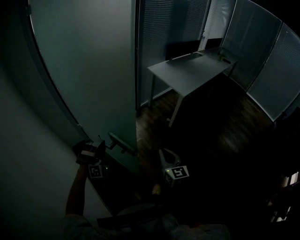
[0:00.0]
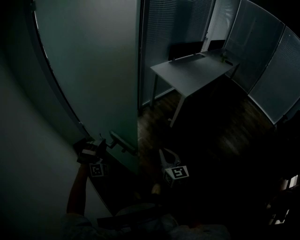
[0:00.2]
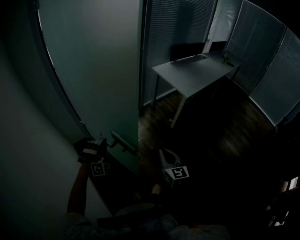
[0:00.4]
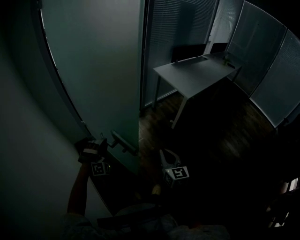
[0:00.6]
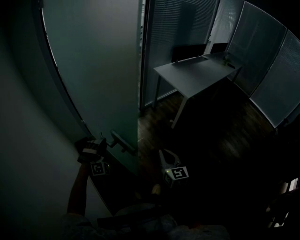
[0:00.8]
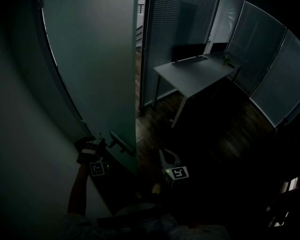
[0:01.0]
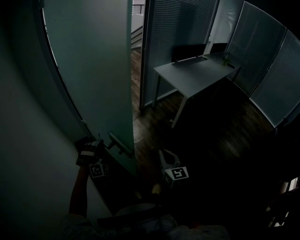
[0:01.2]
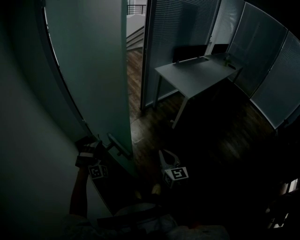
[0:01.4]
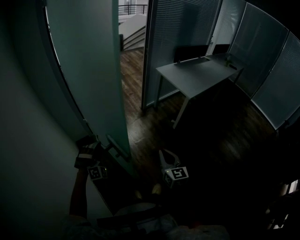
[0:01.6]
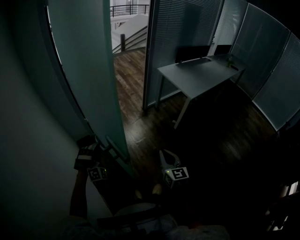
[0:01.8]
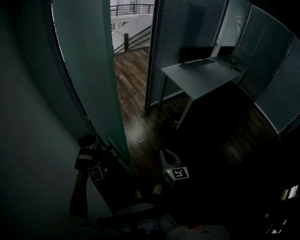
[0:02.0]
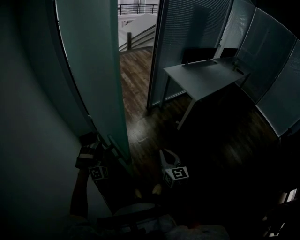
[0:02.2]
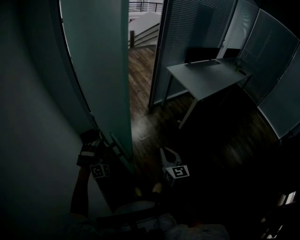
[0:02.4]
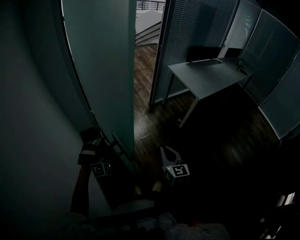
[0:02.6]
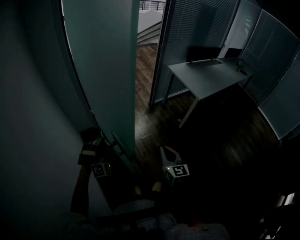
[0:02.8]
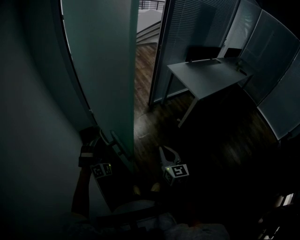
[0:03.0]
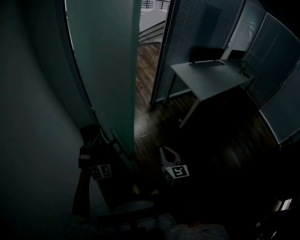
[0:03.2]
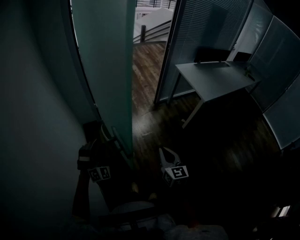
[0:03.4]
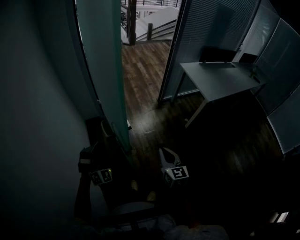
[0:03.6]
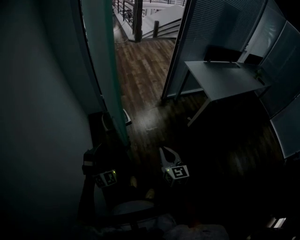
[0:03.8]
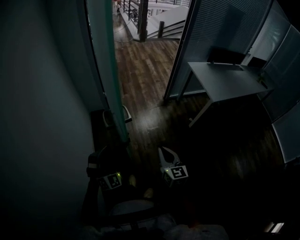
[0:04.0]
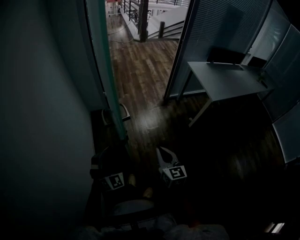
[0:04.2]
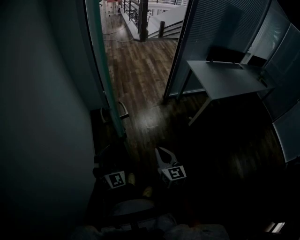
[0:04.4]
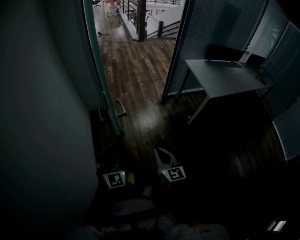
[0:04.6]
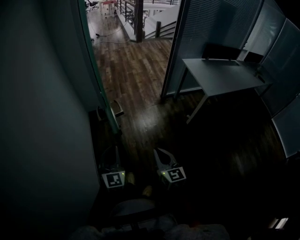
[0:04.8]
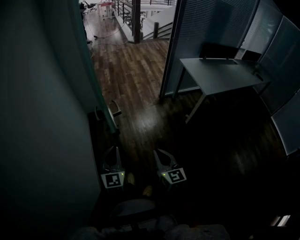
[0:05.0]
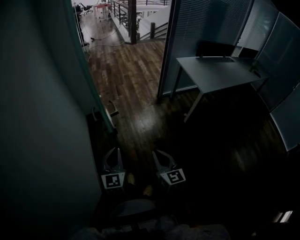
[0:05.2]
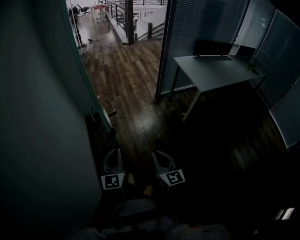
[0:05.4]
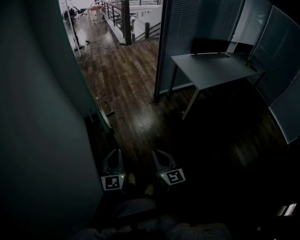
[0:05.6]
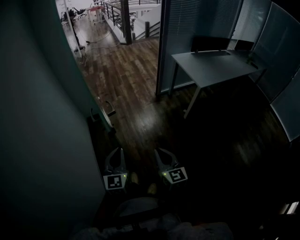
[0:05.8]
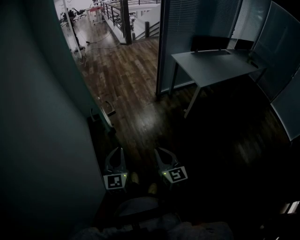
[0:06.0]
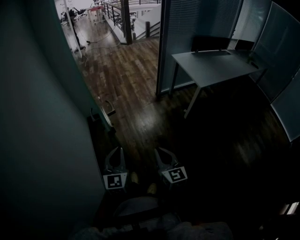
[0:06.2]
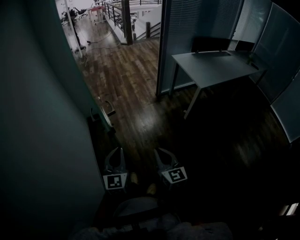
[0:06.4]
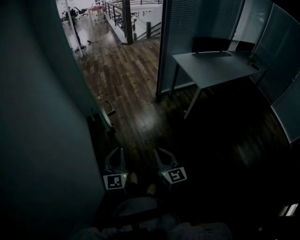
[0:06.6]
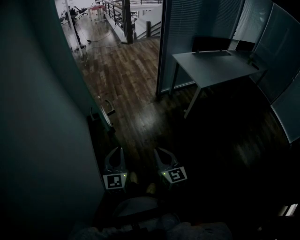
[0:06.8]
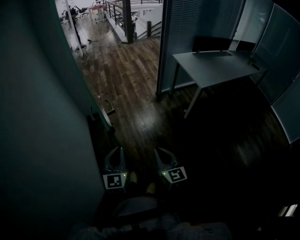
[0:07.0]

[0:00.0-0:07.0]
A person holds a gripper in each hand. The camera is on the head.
0:00.0 to 0:01.4: The left gripper is displaced to the left by about 5 cm.
0:01.4 to 0:02.8: The grippers make only small movements.
0:02.8 to 0:04.2: The left gripper is displaced backward by about 15 cm, turns by approximately 40 degrees, and opens and closes again. The right gripper goes some 5 cm backward.
0:04.2 to 0:05.6: The left gripper travels to the right and backward by about 10 cm, and twists some 50 degrees counterclockwise, seen from behind. The right gripper shifts roughly 10 cm backward.
0:05.6 to 0:07.0: Both grippers stay about where they are.

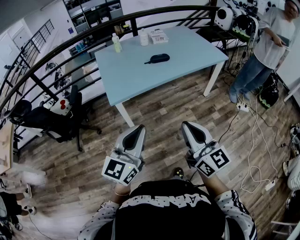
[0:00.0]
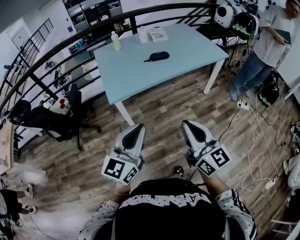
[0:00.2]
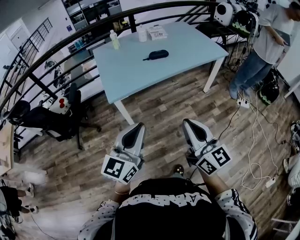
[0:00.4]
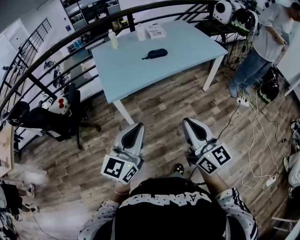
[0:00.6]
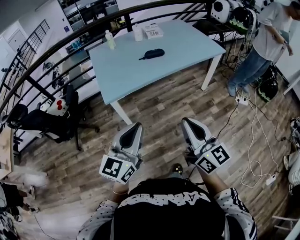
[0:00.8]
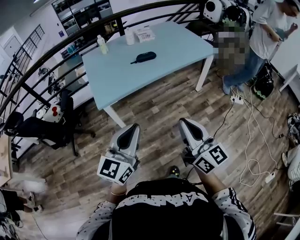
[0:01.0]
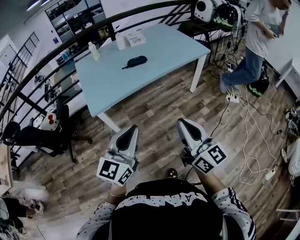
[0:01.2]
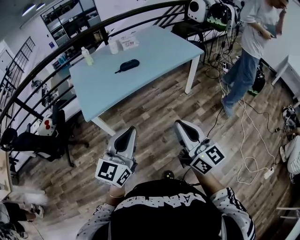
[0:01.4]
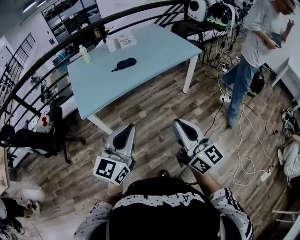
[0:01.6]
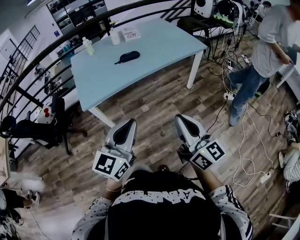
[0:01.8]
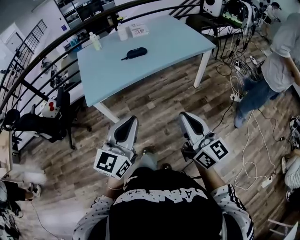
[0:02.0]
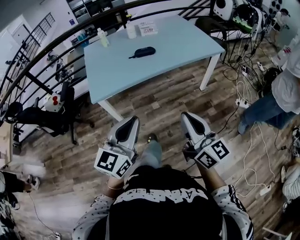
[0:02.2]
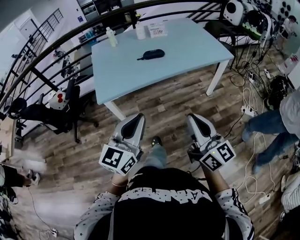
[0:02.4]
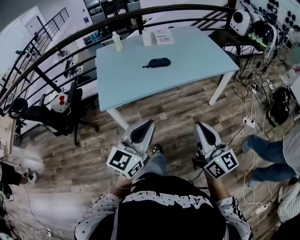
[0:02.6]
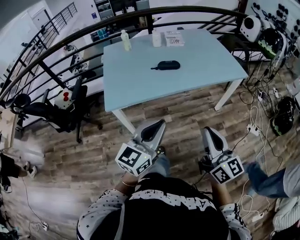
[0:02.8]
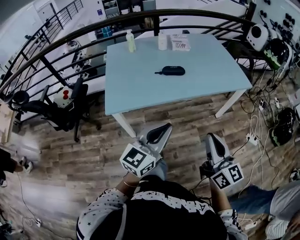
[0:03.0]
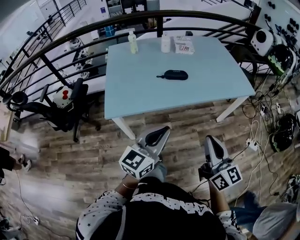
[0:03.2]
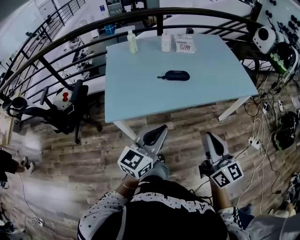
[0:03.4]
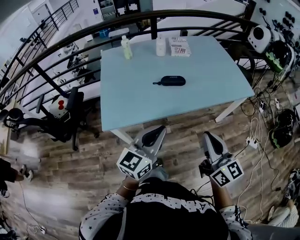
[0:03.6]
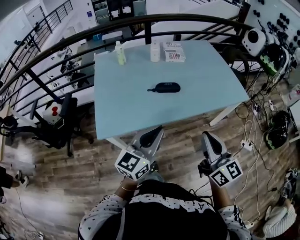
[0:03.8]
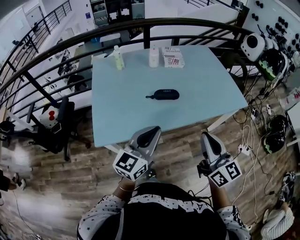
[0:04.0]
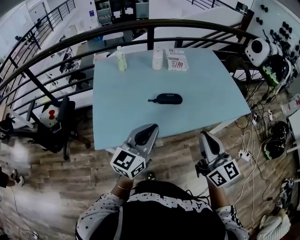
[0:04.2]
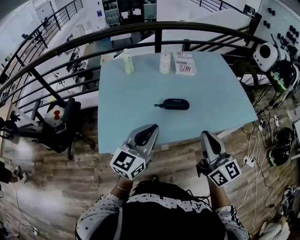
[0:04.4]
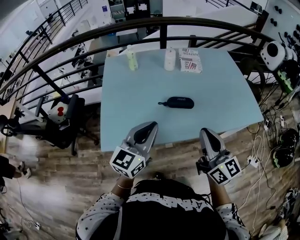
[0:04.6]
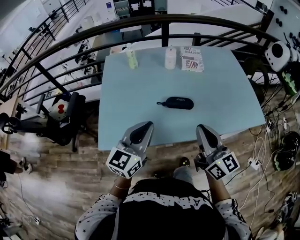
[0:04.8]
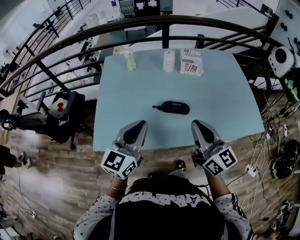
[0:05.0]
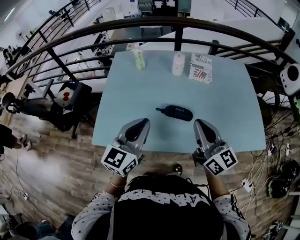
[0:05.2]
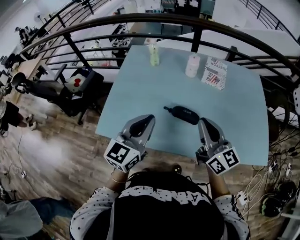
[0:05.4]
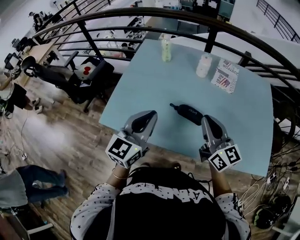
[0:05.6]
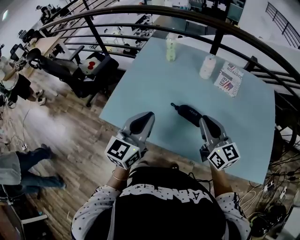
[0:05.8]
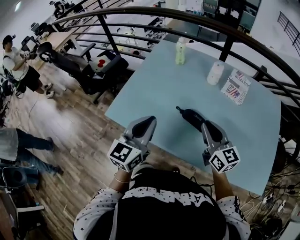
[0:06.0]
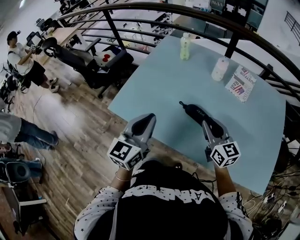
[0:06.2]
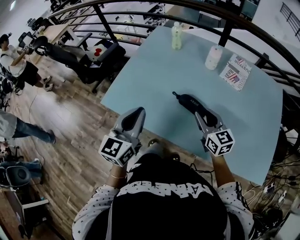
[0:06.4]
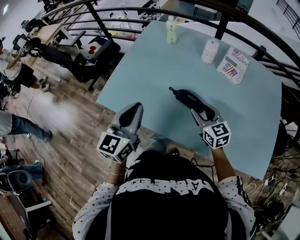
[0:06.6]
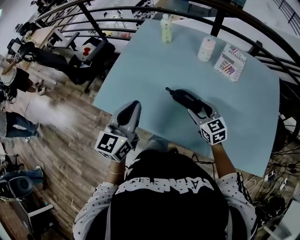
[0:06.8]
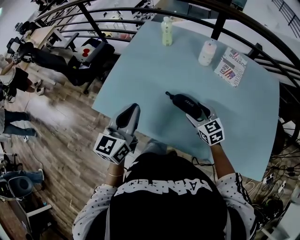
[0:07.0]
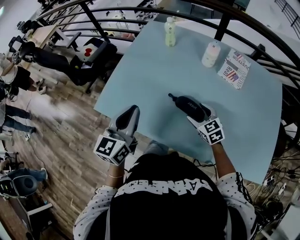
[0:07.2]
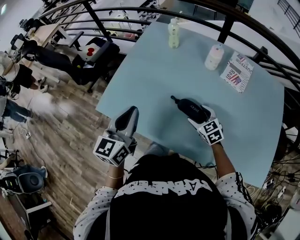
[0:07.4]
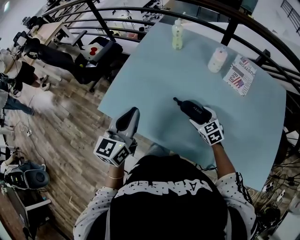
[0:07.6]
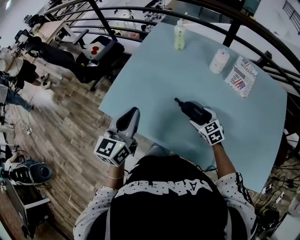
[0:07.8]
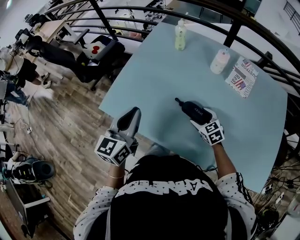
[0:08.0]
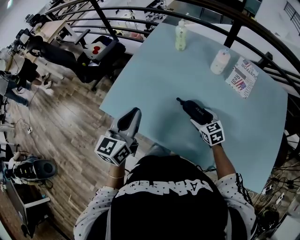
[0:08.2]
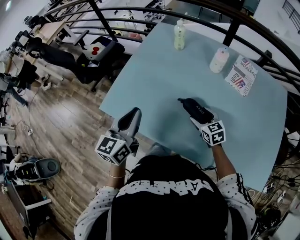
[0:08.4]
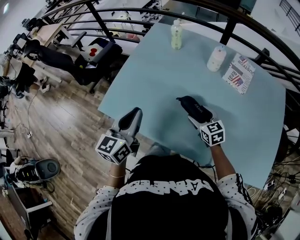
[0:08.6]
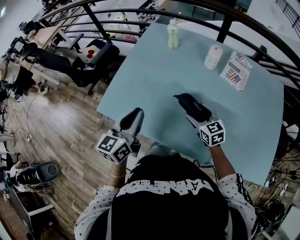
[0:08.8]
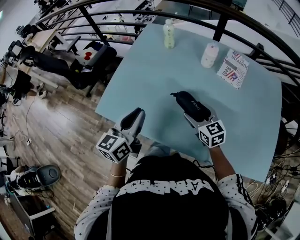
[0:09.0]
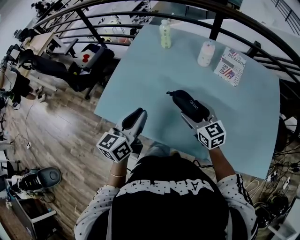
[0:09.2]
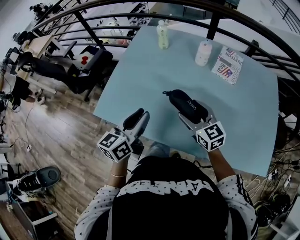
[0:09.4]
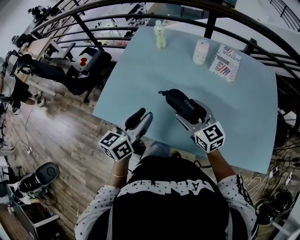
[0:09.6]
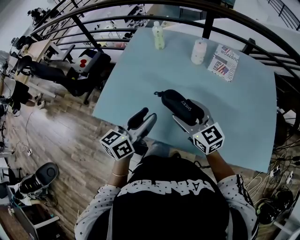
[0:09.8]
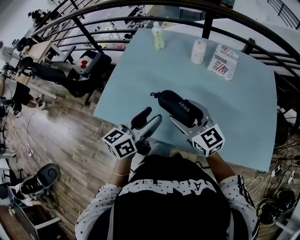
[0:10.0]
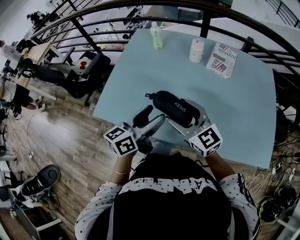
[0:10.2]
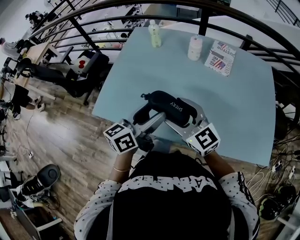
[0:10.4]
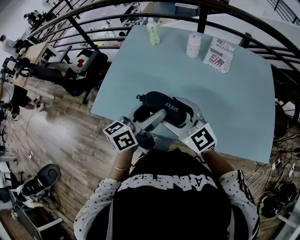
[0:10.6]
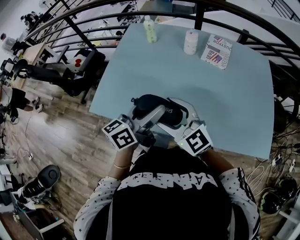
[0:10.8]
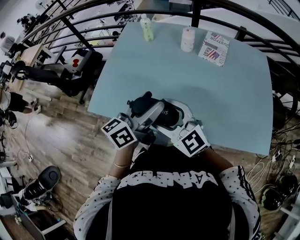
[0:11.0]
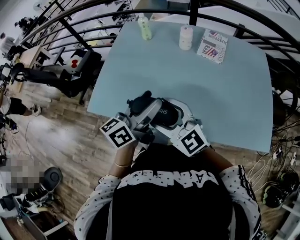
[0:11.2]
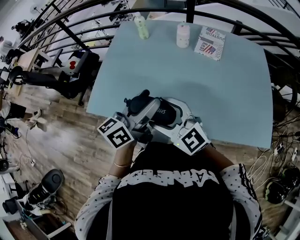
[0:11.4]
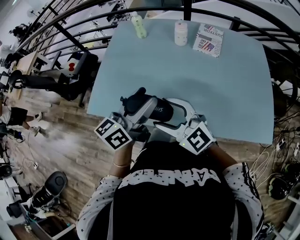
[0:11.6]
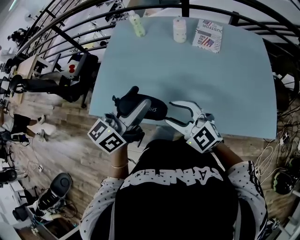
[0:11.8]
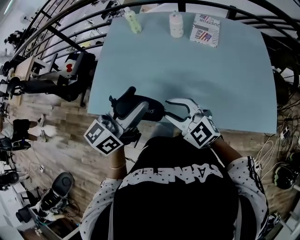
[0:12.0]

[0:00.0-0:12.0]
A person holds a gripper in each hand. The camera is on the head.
0:00.0 to 0:01.6: Both grippers move to the right, roughly 20 cm.
0:01.6 to 0:03.0: Both grippers move forward, roughly 20 cm.
0:03.0 to 0:04.4: Both grippers move forward, approximately 30 cm.
0:04.4 to 0:06.0: The left gripper ends up approximately 10 cm from where it was, and rotates some 40 degrees. Meanwhile the right gripper ends up approximately 25 cm from where it was, and turns by roughly 40 degrees.
0:06.0 to 0:07.6: The left gripper goes roughly 5 cm forward. Meanwhile the right gripper shifts roughly 25 cm downward and forward, tips its fingers downward by roughly 40 degrees, and opens its fingers.
0:07.6 to 0:09.0: The right gripper moves upward, some 10 cm, and swivels approximately 20 degrees.
0:09.0 to 0:10.4: The right gripper heads upward and backward, covering about 15 cm, and changes its angle by approximately 20 degrees. Meanwhile the left gripper moves to the right, roughly 10 cm, and turns by approximately 20 degrees.
0:10.4 to 0:12.0: The right gripper goes about 5 cm backward, and closes its fingers. Meanwhile the left gripper is displaced upward by about 5 cm.

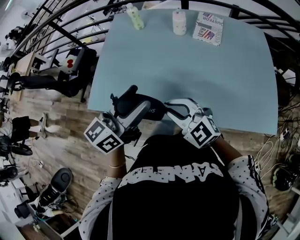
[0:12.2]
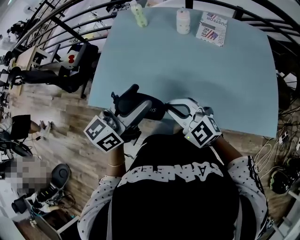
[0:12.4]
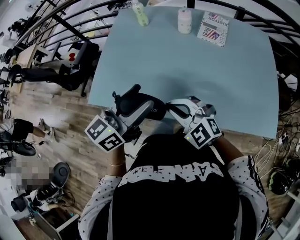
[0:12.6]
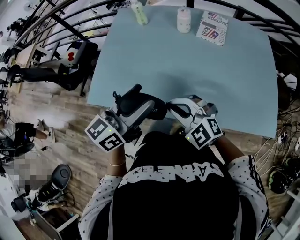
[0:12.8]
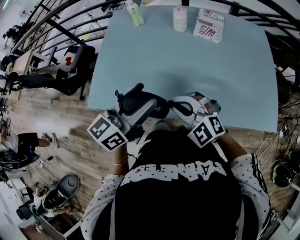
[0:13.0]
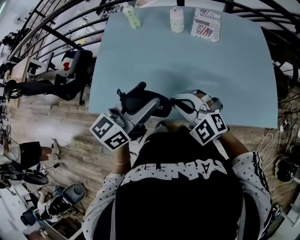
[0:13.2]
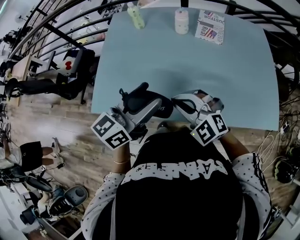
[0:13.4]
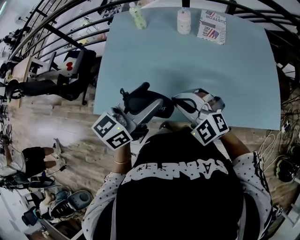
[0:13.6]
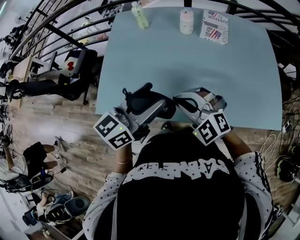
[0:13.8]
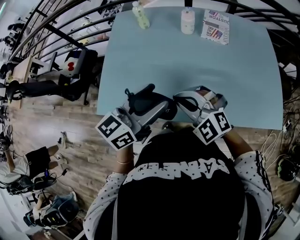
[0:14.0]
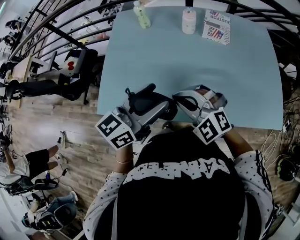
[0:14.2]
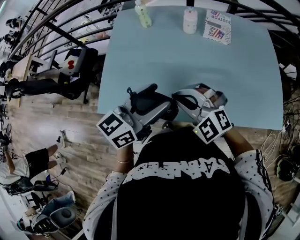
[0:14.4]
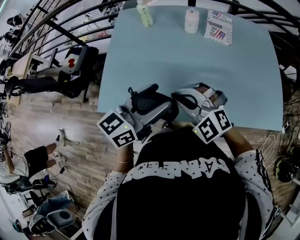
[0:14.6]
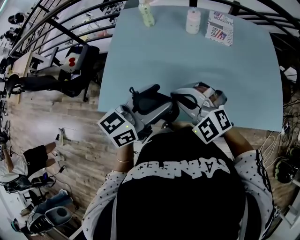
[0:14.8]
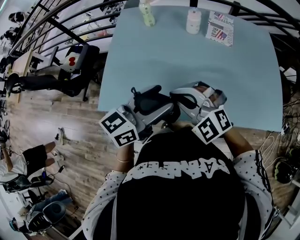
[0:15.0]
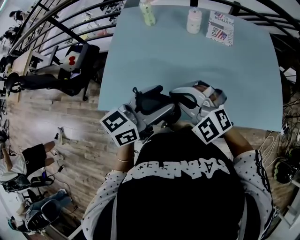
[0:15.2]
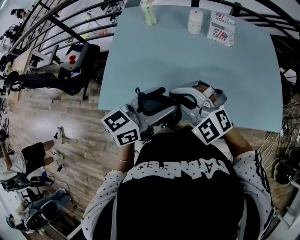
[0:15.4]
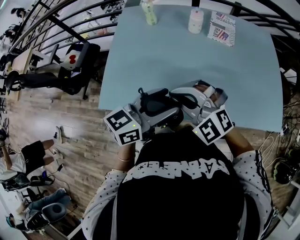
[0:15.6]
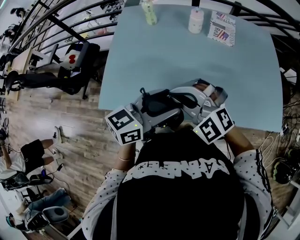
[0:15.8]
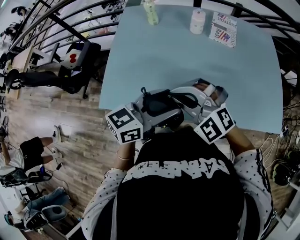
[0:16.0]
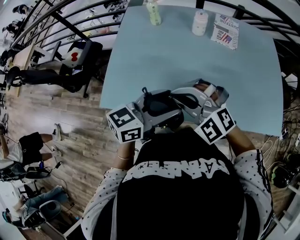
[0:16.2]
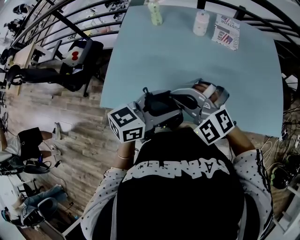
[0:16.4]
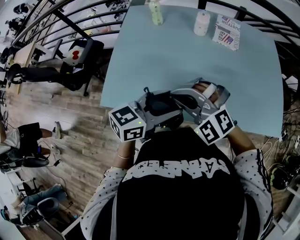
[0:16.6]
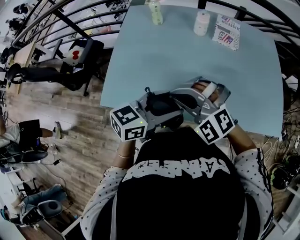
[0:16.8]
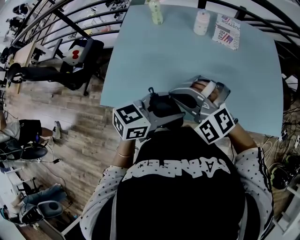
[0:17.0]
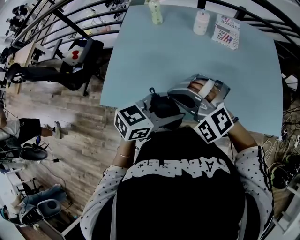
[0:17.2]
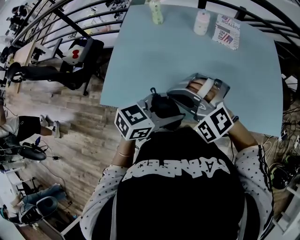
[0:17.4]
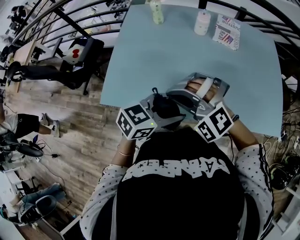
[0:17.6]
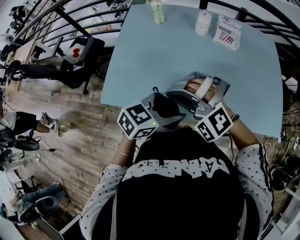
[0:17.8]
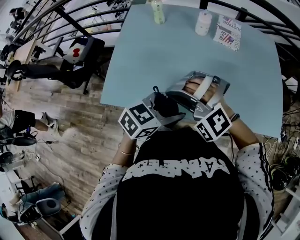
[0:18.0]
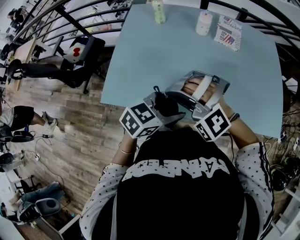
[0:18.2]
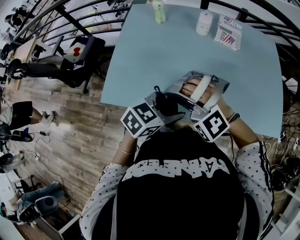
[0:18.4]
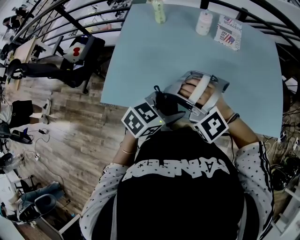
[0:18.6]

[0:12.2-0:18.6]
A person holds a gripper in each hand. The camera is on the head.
0:12.2 to 0:13.8: The right gripper shifts by roughly 5 cm, and rotates about 20 degrees.
0:13.8 to 0:15.4: The right gripper shifts about 5 cm to the left.
0:15.4 to 0:17.0: The grippers stay close to where they were, moving slightly.
0:17.0 to 0:18.6: The left gripper heads downward, covering approximately 5 cm, while the right gripper turns by roughly 30 degrees.
